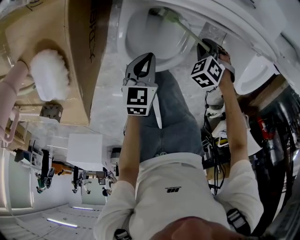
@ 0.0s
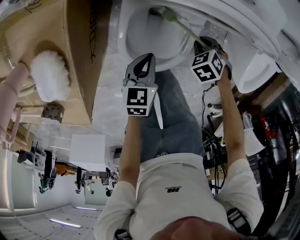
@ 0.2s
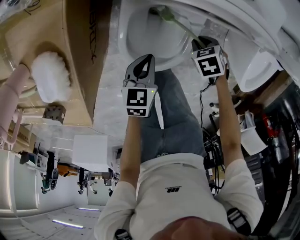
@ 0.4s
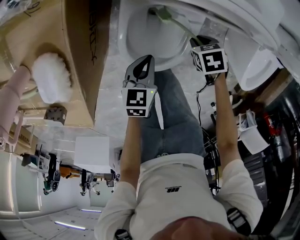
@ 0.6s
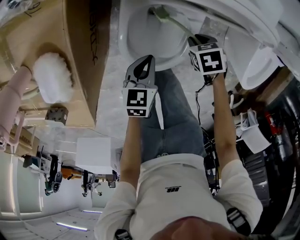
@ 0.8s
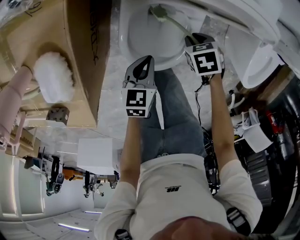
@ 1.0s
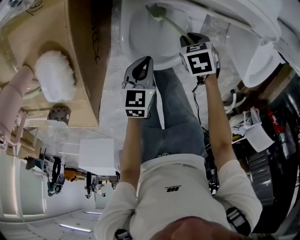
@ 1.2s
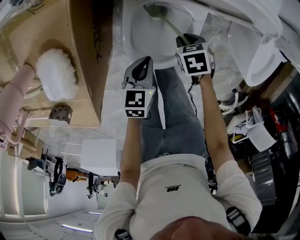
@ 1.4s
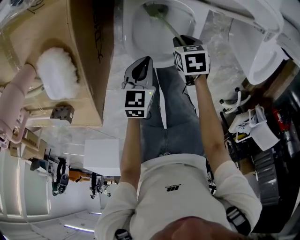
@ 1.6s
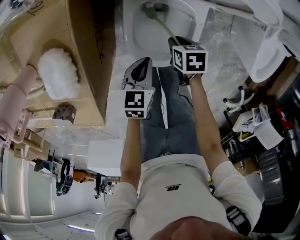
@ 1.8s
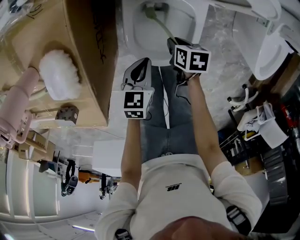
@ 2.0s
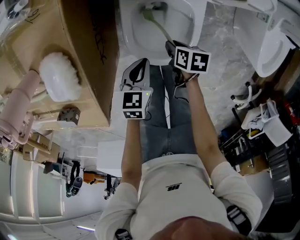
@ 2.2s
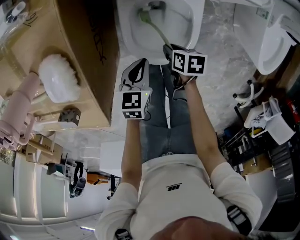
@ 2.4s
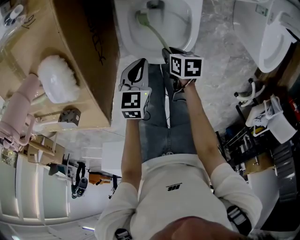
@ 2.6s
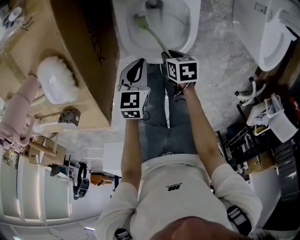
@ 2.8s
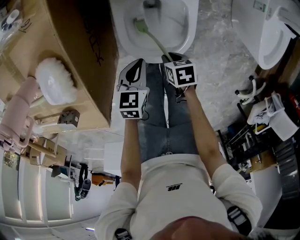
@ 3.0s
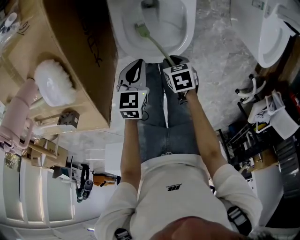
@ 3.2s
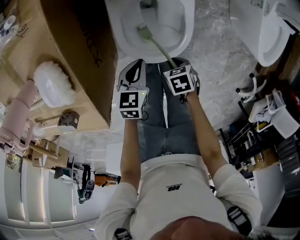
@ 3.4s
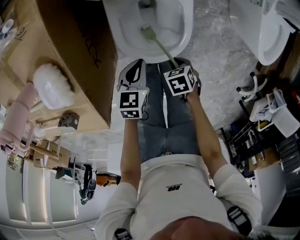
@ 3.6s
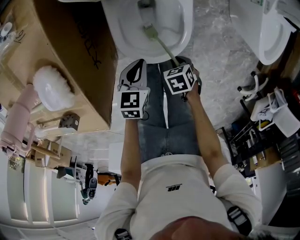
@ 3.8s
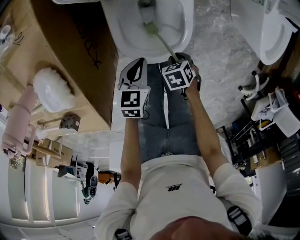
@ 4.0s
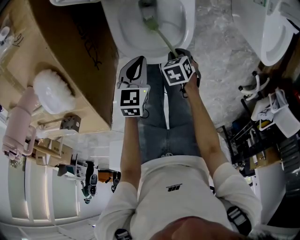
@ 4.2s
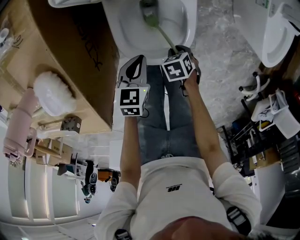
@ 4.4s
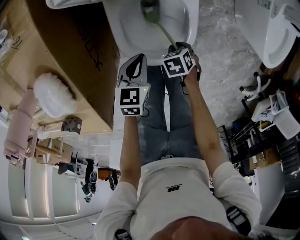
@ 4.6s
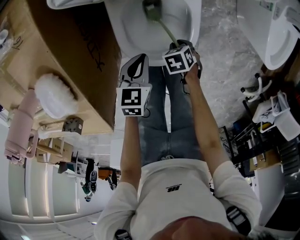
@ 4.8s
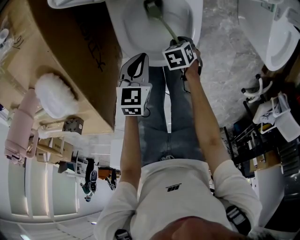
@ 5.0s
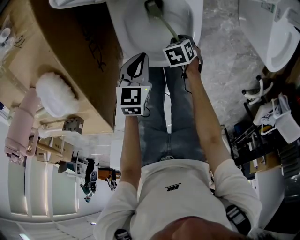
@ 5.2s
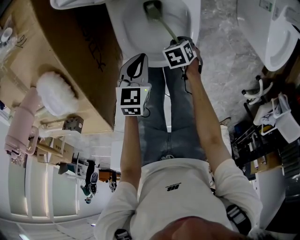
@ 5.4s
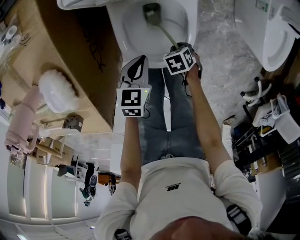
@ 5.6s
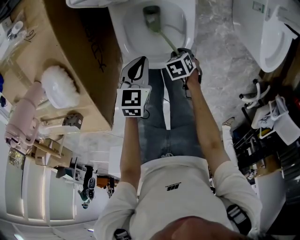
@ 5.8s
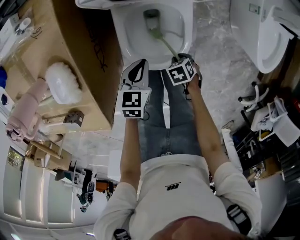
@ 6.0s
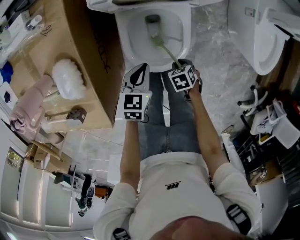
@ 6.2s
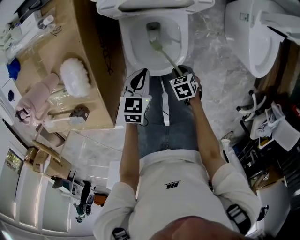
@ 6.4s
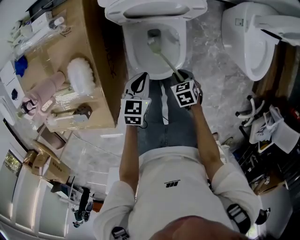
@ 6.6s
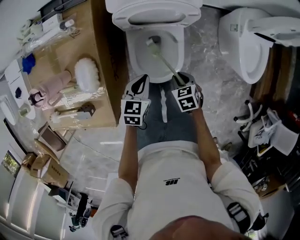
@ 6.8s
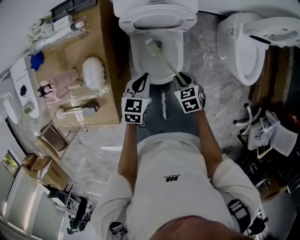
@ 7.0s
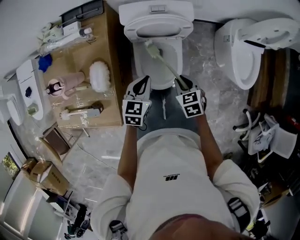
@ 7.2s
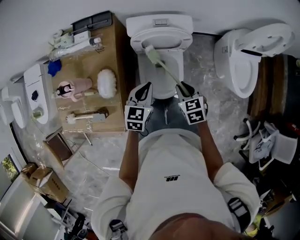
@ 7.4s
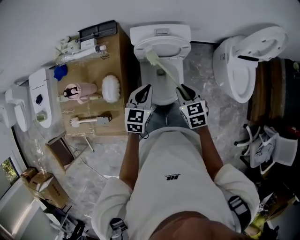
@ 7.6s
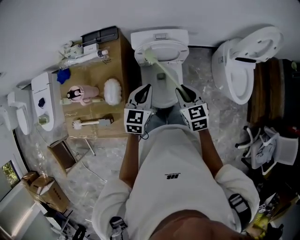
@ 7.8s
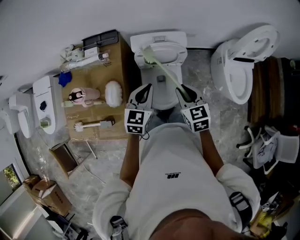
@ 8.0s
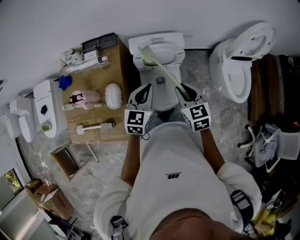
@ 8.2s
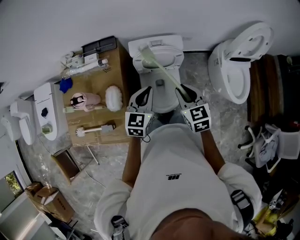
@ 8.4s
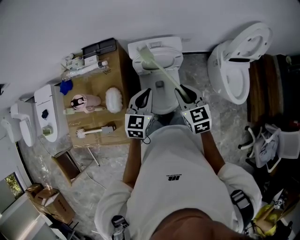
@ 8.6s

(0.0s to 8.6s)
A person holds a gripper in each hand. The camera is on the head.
0.0s - 1.4s: The right gripper shifts by some 10 cm, and twists roughly 40 degrees clockwise, seen from behind.
1.4s - 2.8s: The right gripper ends up roughly 15 cm from where it was, and rotates roughly 30 degrees.
2.8s - 4.4s: The right gripper changes place by about 5 cm, and swivels approximately 30 degrees.
5.8s - 7.2s: The grippers both shift upward by roughly 30 cm. The right gripper turns by some 30 degrees.
7.2s - 8.6s: Both grippers move upward, approximately 20 cm. The right gripper swivels approximately 30 degrees.

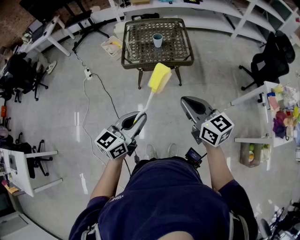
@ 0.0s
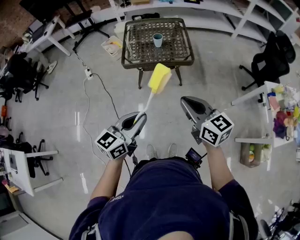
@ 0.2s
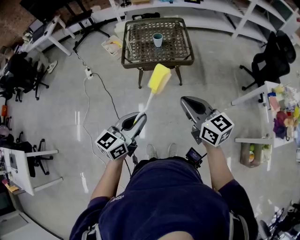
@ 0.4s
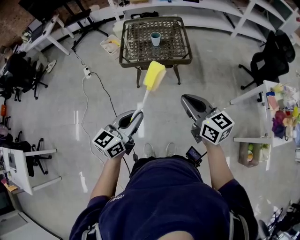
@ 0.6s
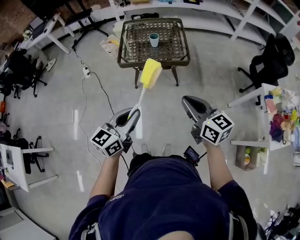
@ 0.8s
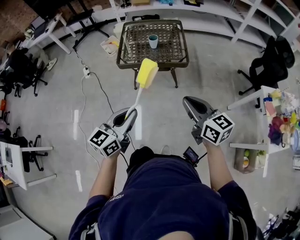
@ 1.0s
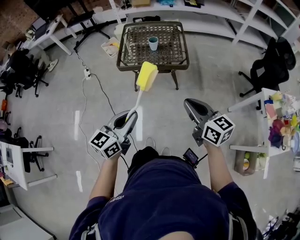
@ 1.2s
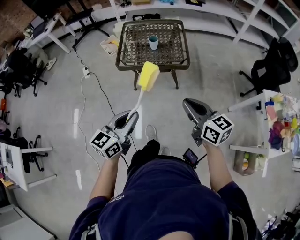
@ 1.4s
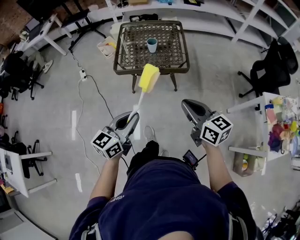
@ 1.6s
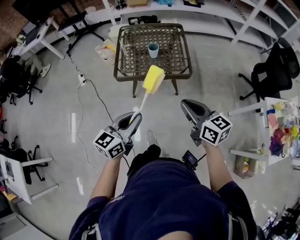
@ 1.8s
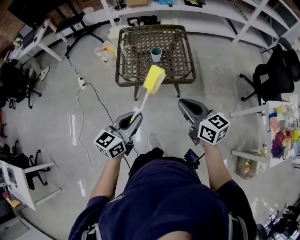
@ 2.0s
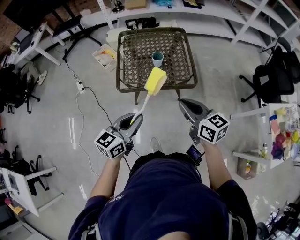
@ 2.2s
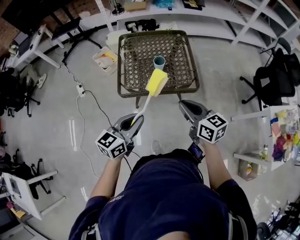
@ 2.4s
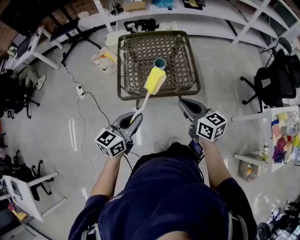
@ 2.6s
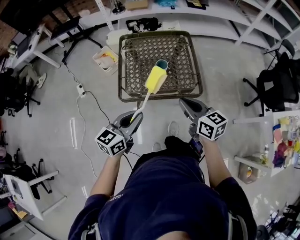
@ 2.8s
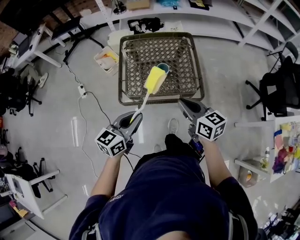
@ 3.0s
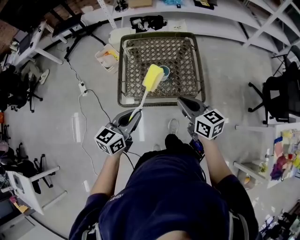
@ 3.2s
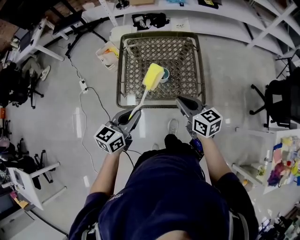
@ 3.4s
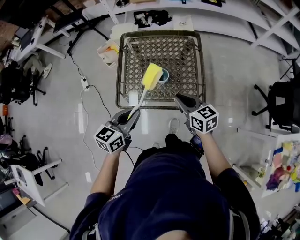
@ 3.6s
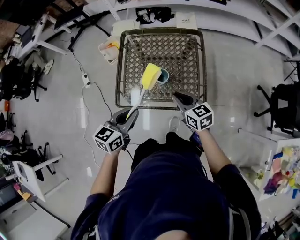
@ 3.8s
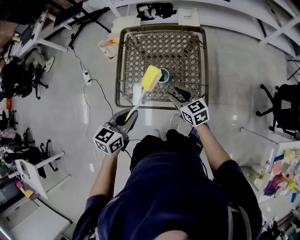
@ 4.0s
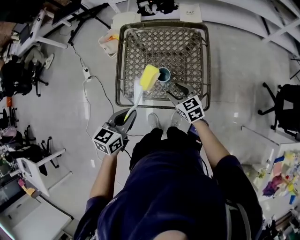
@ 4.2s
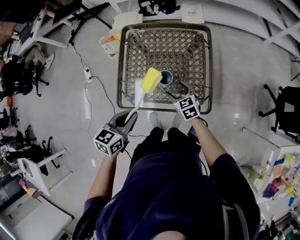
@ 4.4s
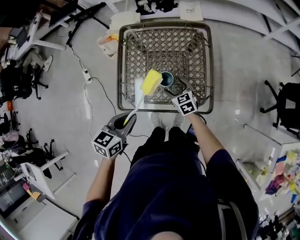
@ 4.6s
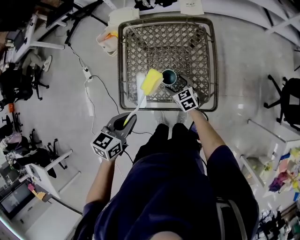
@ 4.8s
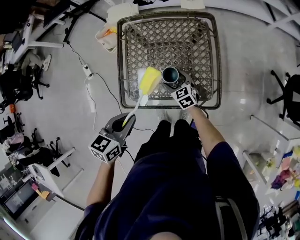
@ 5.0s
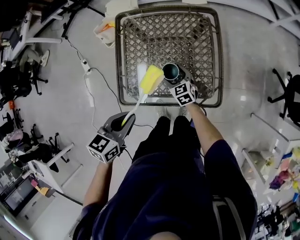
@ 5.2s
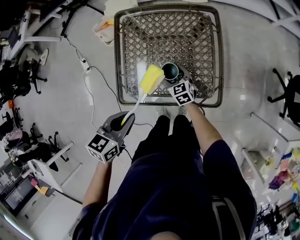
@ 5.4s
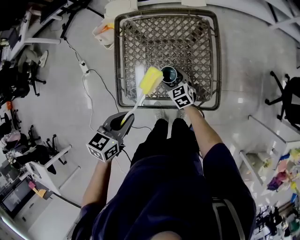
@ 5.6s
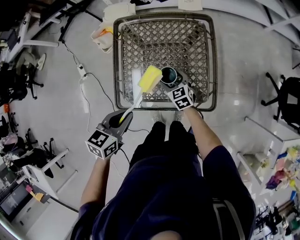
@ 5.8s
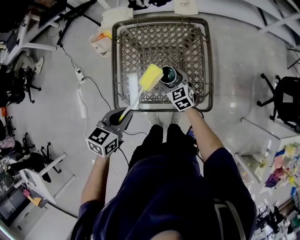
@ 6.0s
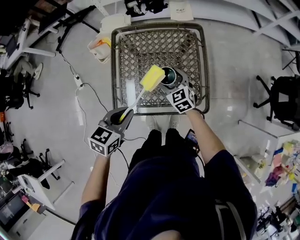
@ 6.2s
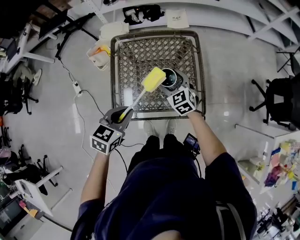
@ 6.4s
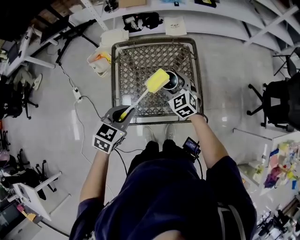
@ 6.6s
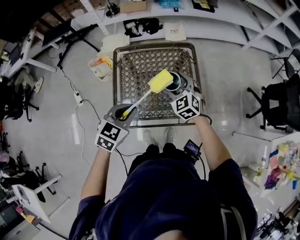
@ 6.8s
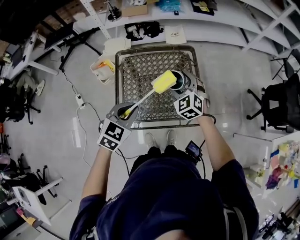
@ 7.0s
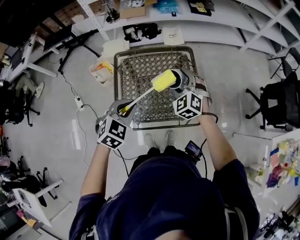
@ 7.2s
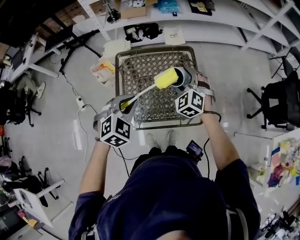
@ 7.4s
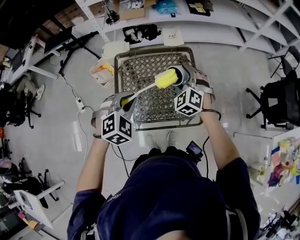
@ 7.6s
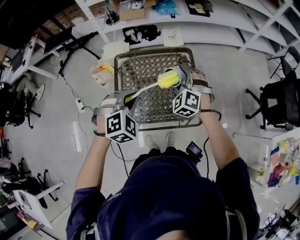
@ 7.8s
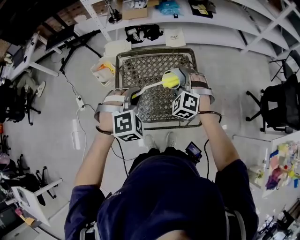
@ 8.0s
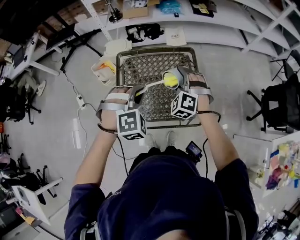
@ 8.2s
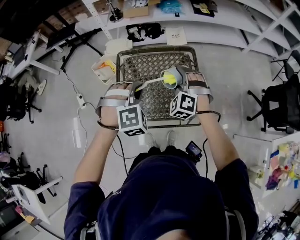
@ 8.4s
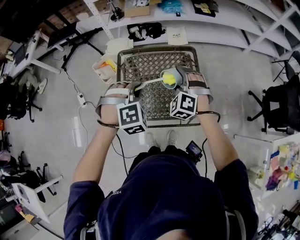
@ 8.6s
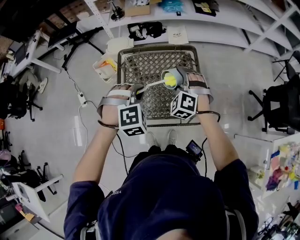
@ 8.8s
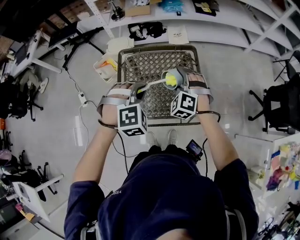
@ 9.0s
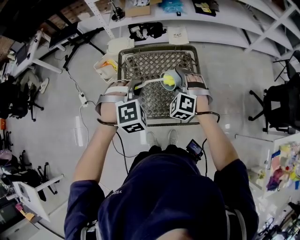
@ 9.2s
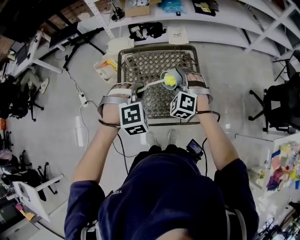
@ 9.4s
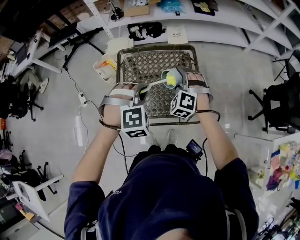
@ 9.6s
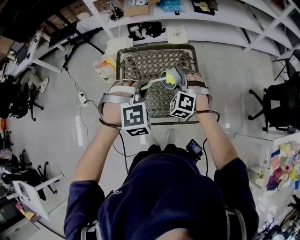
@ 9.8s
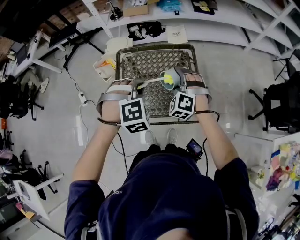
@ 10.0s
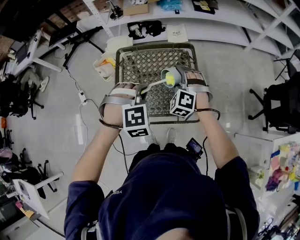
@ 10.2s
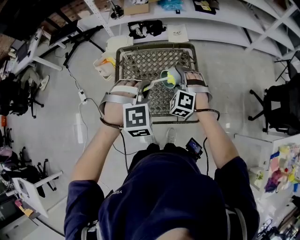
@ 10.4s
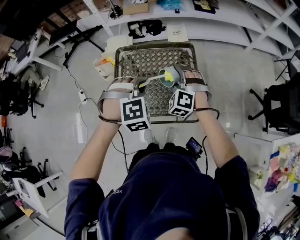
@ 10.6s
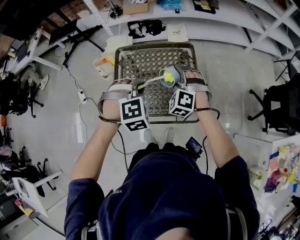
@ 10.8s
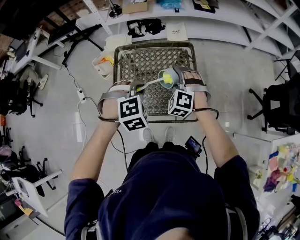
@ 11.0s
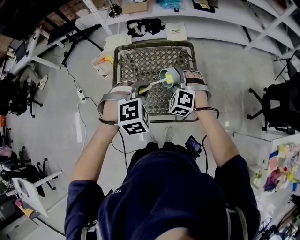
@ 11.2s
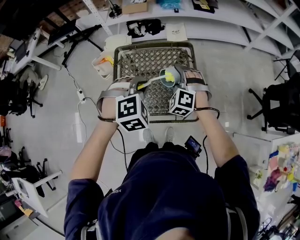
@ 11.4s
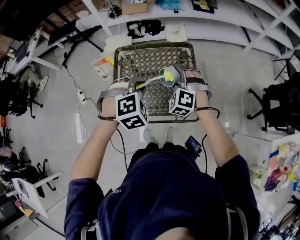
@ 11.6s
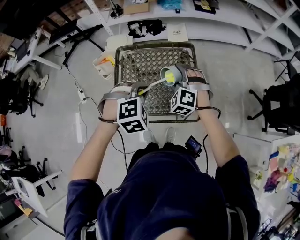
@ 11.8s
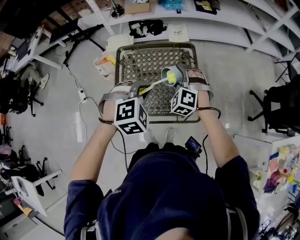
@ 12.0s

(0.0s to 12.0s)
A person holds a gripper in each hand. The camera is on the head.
0.0s - 1.6s: The left gripper moves forward, roughly 10 cm, while the right gripper travels forward and to the right by roughly 10 cm.
1.6s - 3.0s: The two grippers go roughly 30 cm forward.
3.0s - 4.4s: The right gripper heads downward and forward, covering roughly 30 cm, swivels approximately 30 degrees, and opens up; the left gripper is displaced forward and downward by roughly 15 cm, and turns by some 20 degrees.
4.4s - 6.0s: The right gripper moves forward, some 5 cm, and travels downward and back again, about 10 cm each way.
6.0s - 7.6s: The left gripper is displaced upward and forward by approximately 15 cm, and rotates around the line of its fingers by some 60 degrees, clockwise from behind. Meanwhile the right gripper is displaced upward by about 20 cm, and changes its angle by some 40 degrees.
7.6s - 9.0s: The left gripper changes its angle by approximately 20 degrees.
9.0s - 12.0s: The grippers move only a little.

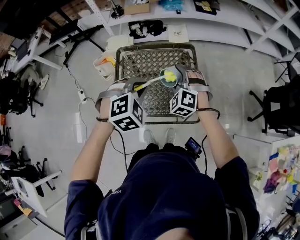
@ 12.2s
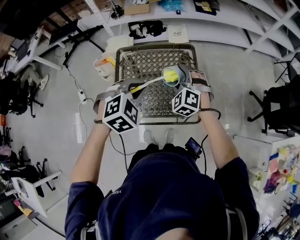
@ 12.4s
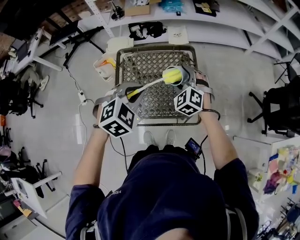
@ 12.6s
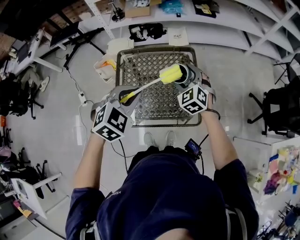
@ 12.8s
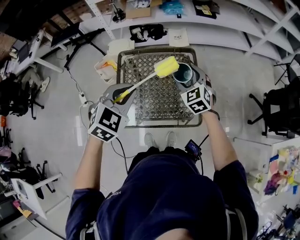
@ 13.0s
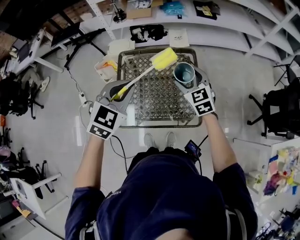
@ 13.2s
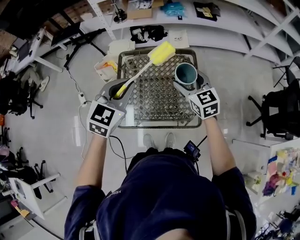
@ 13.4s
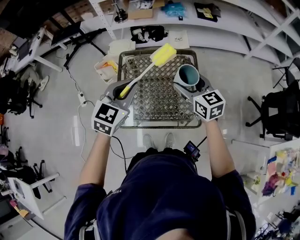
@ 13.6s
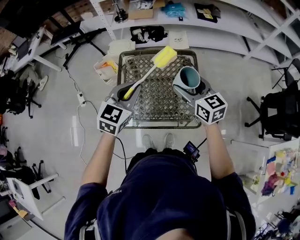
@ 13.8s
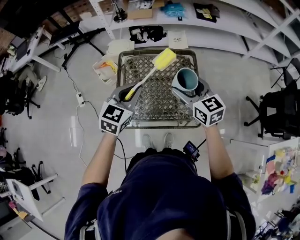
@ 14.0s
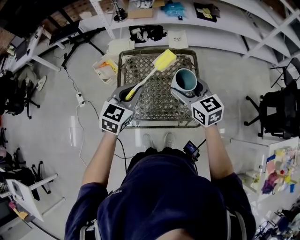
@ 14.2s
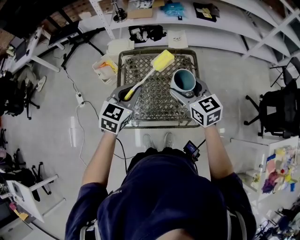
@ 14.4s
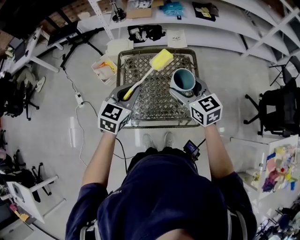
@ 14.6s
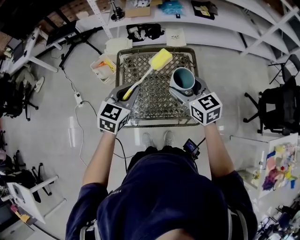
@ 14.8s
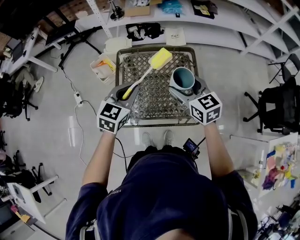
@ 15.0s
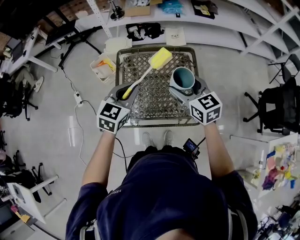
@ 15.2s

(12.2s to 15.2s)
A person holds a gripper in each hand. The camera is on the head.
12.2s - 13.8s: The right gripper is displaced upward by about 10 cm, and rolls clockwise, seen from behind, by about 60 degrees, while the left gripper moves to the left, roughly 5 cm, and swivels about 50 degrees.
13.8s - 15.2s: The grippers make only small movements.
